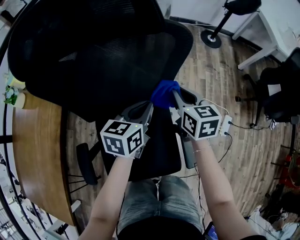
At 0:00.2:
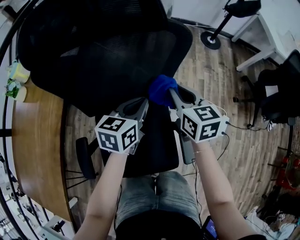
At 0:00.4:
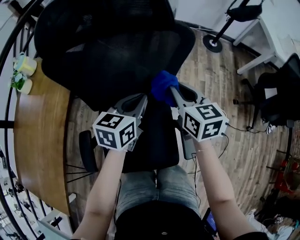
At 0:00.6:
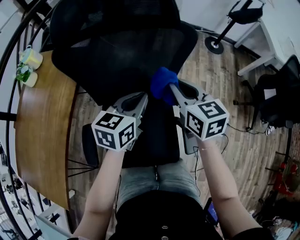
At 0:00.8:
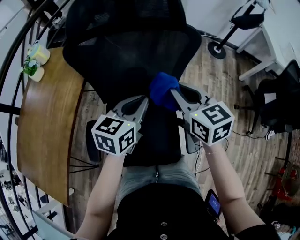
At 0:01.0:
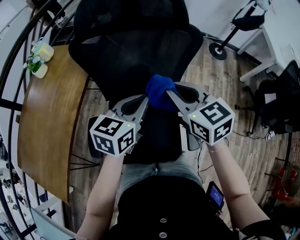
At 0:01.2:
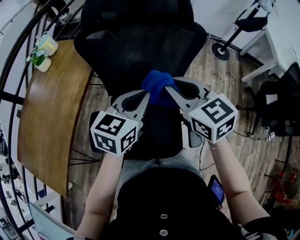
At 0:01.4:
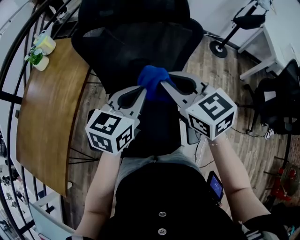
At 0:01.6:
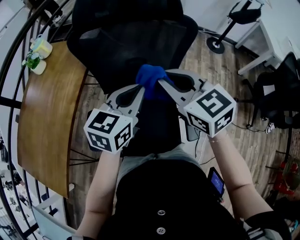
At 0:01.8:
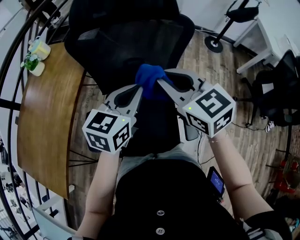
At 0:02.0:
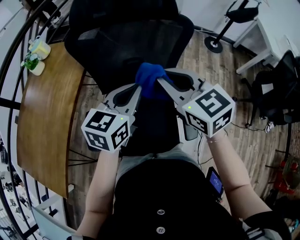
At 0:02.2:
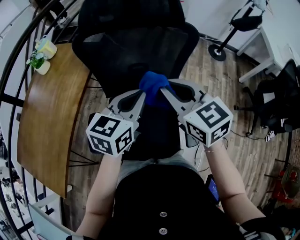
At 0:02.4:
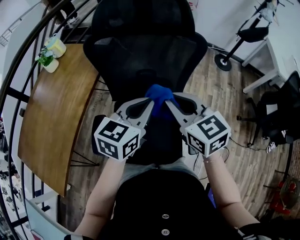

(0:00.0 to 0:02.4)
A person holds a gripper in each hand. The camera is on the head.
0:00.0 - 0:01.2: Both grippers travel together upward, backward and to the left, about 25 cm. The right gripper changes its angle by some 30 degrees.
0:01.2 - 0:02.4: There are only small adjustments of the grippers.

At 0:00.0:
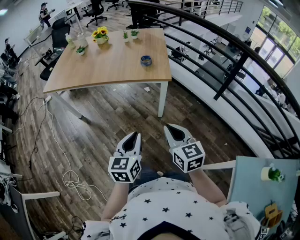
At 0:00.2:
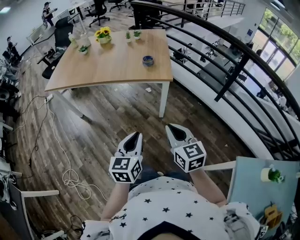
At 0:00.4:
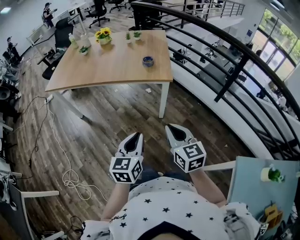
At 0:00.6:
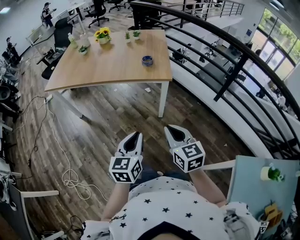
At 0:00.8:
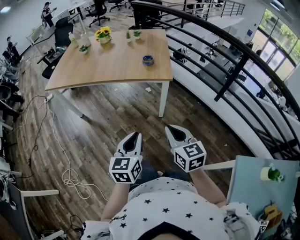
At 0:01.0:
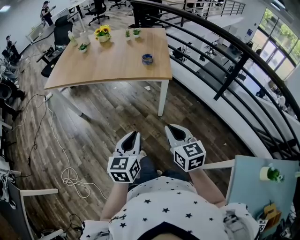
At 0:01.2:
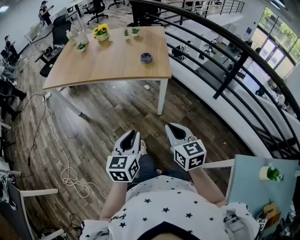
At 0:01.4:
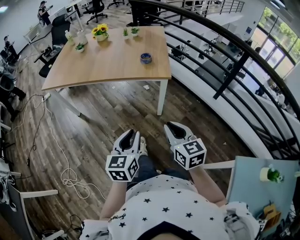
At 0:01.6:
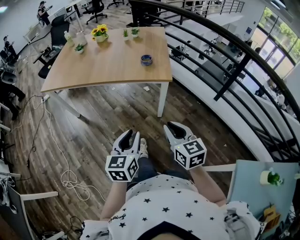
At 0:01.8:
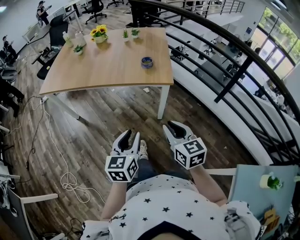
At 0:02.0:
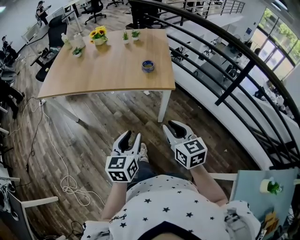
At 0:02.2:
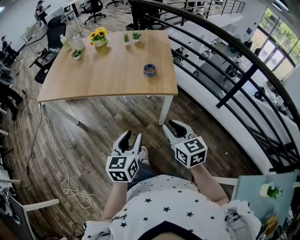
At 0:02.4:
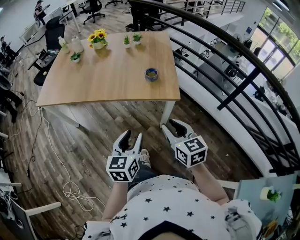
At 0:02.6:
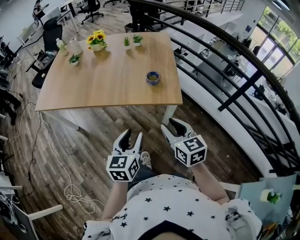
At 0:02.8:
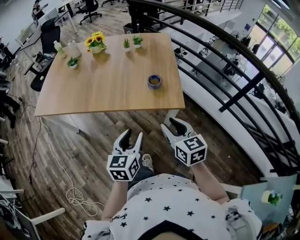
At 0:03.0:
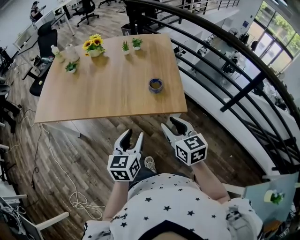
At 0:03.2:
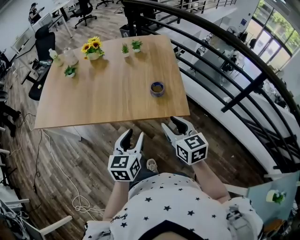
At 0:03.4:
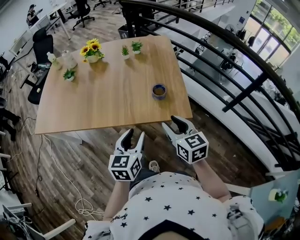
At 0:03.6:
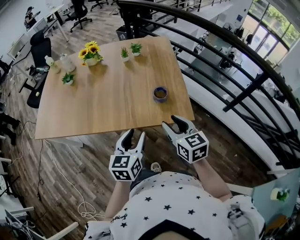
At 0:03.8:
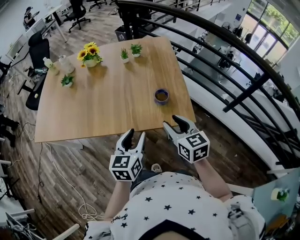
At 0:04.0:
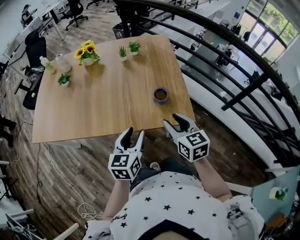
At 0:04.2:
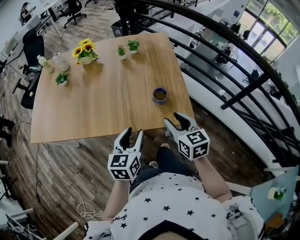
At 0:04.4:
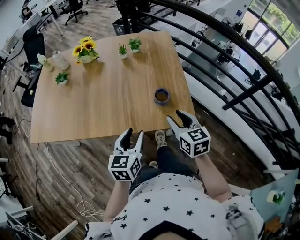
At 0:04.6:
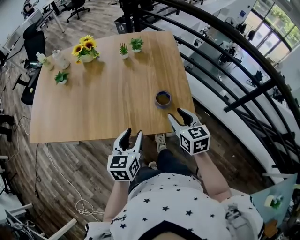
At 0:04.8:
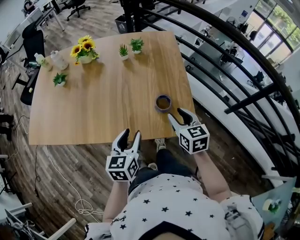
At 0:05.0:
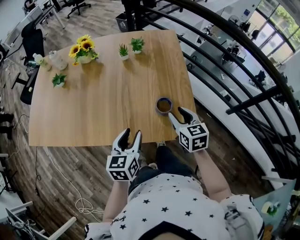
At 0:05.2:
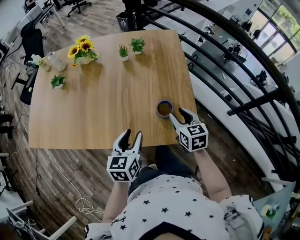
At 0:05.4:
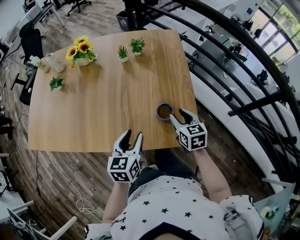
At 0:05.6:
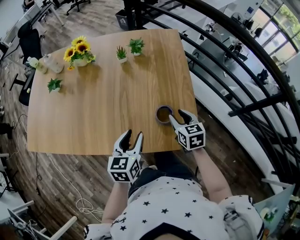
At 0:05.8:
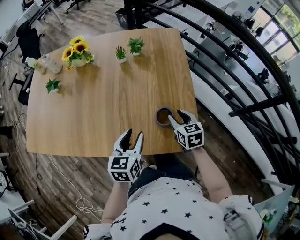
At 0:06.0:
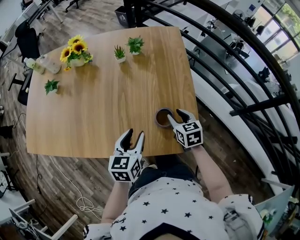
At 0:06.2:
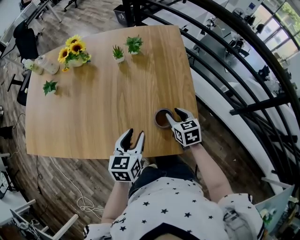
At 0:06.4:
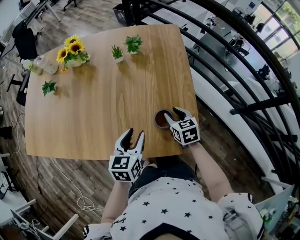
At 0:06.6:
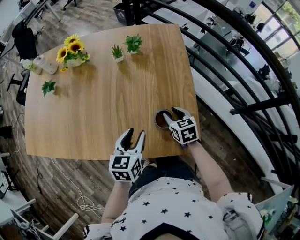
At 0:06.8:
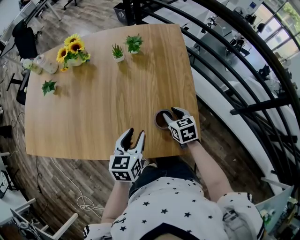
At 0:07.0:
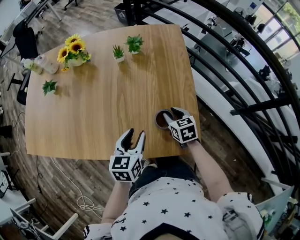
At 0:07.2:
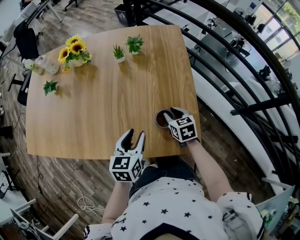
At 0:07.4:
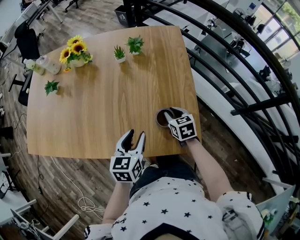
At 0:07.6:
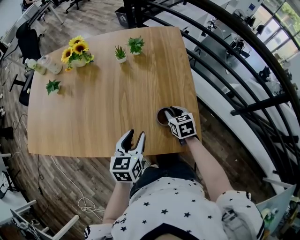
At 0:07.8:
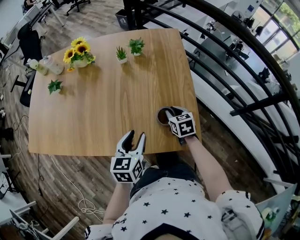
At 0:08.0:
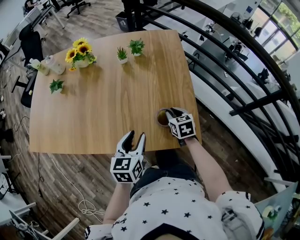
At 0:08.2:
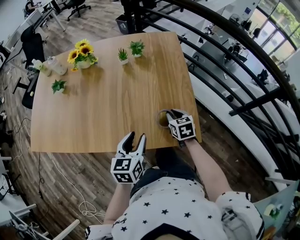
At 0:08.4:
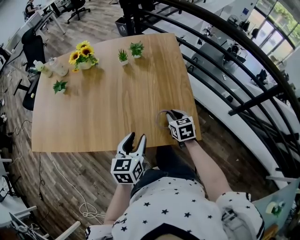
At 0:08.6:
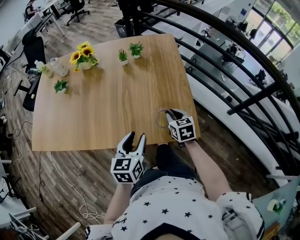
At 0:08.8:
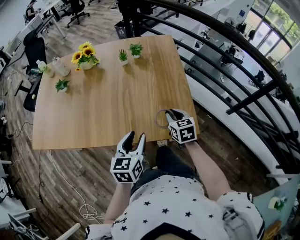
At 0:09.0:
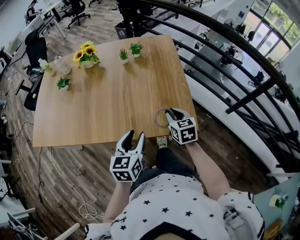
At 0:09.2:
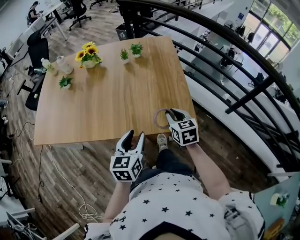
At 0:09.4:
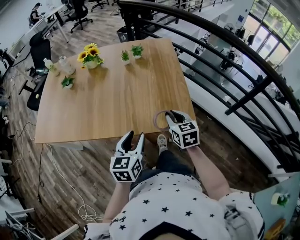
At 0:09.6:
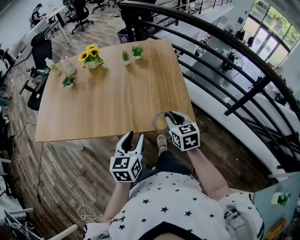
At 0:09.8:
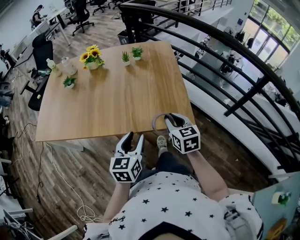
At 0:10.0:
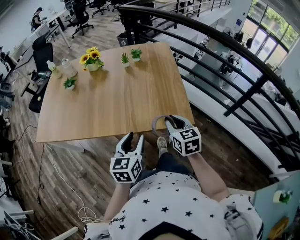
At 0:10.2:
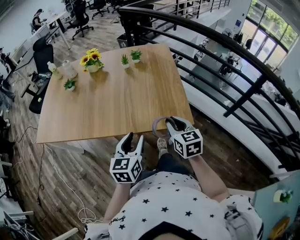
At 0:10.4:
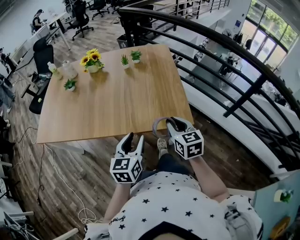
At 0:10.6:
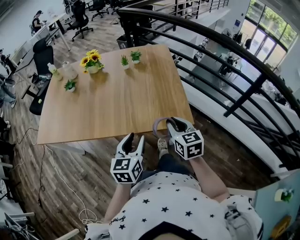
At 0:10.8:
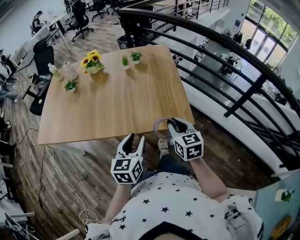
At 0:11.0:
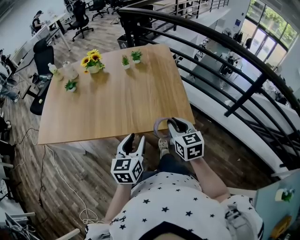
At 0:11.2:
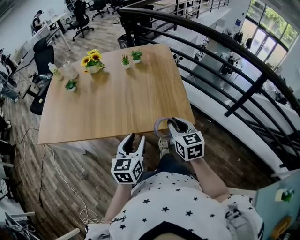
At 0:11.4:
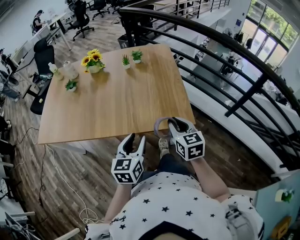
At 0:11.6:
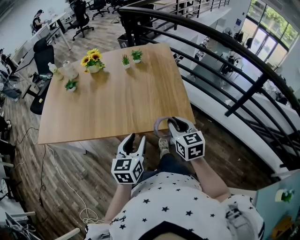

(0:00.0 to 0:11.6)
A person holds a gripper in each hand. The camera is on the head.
0:00.0 - 0:01.4: The grippers make only small movements.
0:01.4 - 0:02.8: The grippers both shift forward by roughly 30 cm. The right gripper opens its fingers. Meanwhile the left gripper opens up.
0:02.8 - 0:04.4: The two grippers go some 20 cm forward.
0:04.4 - 0:05.8: The two grippers go some 20 cm forward and downward.
0:05.8 - 0:07.2: The right gripper ends up some 5 cm from where it was.
0:07.2 - 0:08.8: Both grippers travel together backward and upward, roughly 10 cm.
0:08.8 - 0:10.2: The right gripper is displaced backward and upward by some 15 cm. The left gripper moves backward, some 10 cm.
0:10.2 - 0:11.6: Neither gripper changes place.

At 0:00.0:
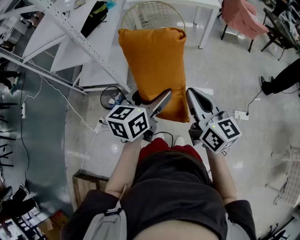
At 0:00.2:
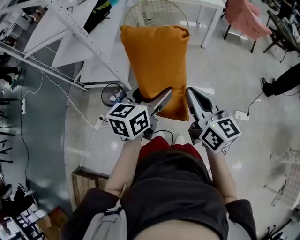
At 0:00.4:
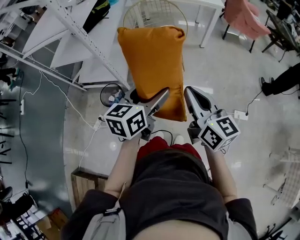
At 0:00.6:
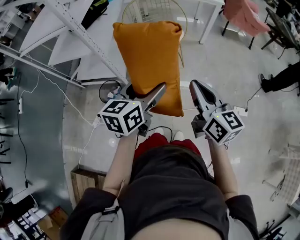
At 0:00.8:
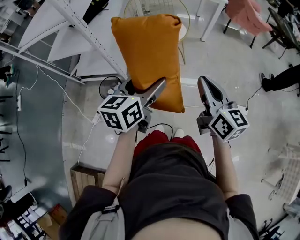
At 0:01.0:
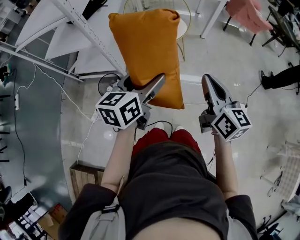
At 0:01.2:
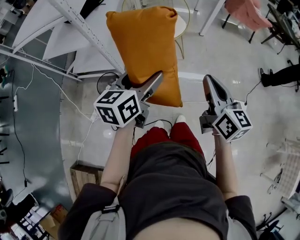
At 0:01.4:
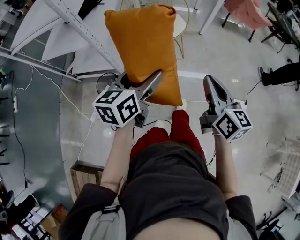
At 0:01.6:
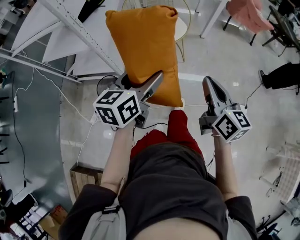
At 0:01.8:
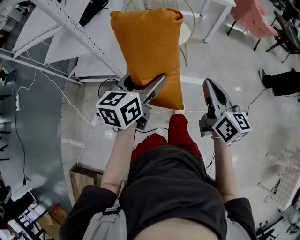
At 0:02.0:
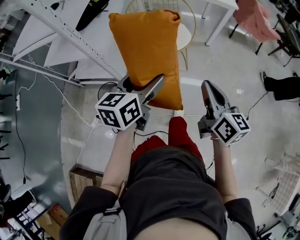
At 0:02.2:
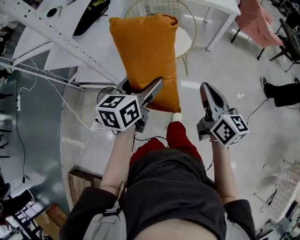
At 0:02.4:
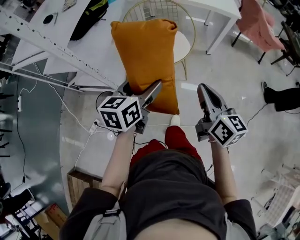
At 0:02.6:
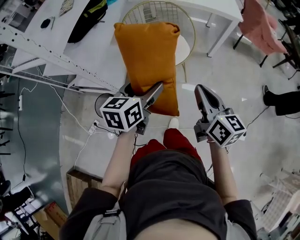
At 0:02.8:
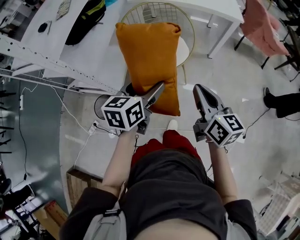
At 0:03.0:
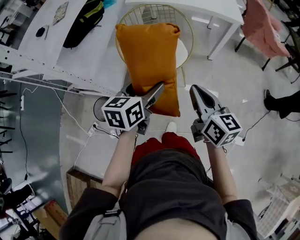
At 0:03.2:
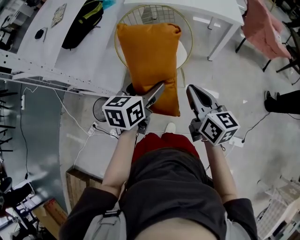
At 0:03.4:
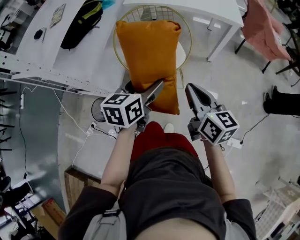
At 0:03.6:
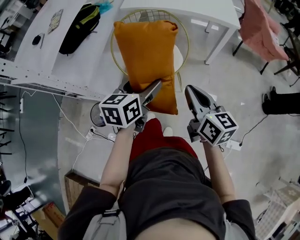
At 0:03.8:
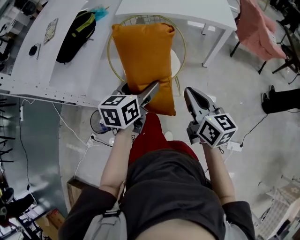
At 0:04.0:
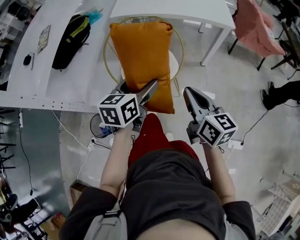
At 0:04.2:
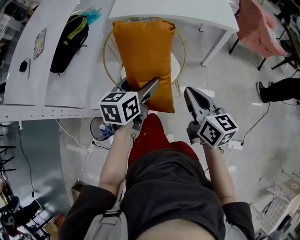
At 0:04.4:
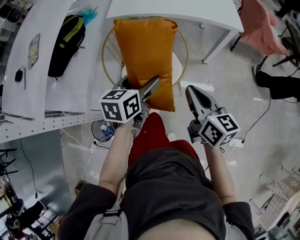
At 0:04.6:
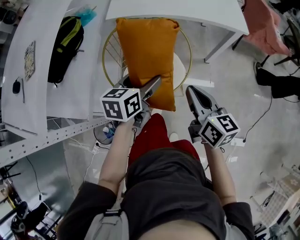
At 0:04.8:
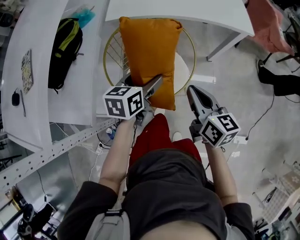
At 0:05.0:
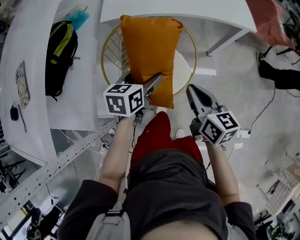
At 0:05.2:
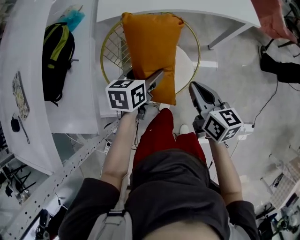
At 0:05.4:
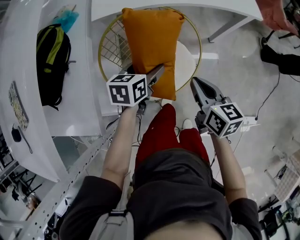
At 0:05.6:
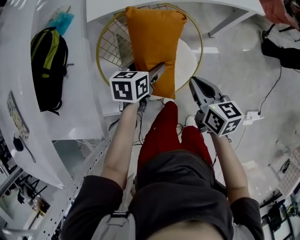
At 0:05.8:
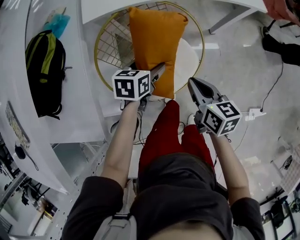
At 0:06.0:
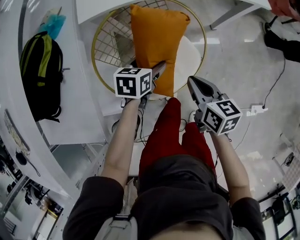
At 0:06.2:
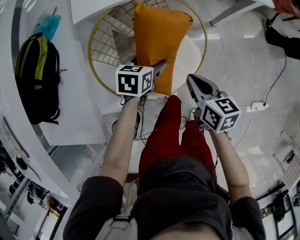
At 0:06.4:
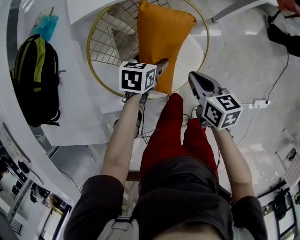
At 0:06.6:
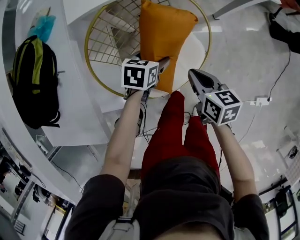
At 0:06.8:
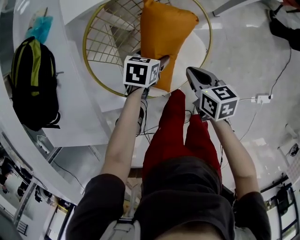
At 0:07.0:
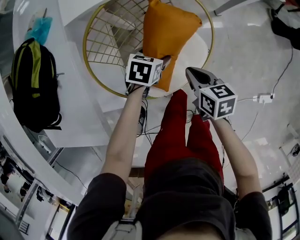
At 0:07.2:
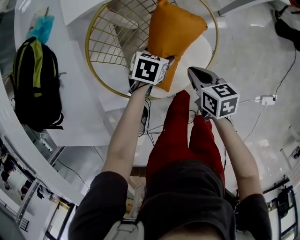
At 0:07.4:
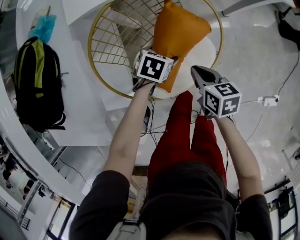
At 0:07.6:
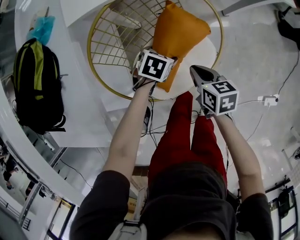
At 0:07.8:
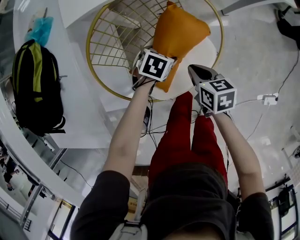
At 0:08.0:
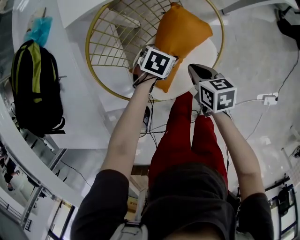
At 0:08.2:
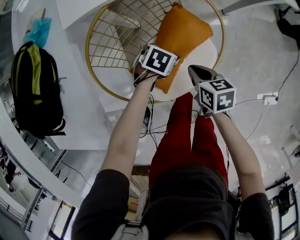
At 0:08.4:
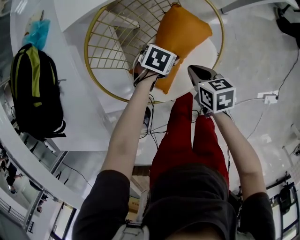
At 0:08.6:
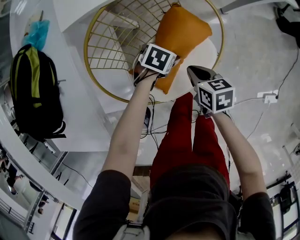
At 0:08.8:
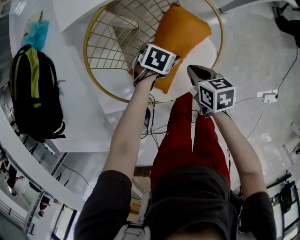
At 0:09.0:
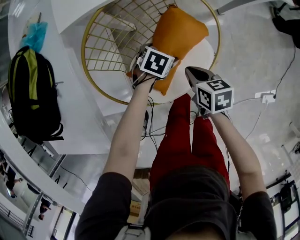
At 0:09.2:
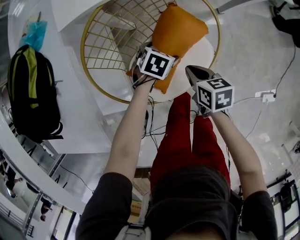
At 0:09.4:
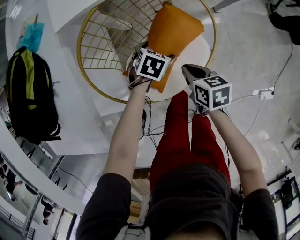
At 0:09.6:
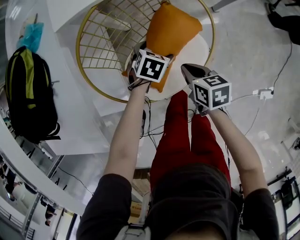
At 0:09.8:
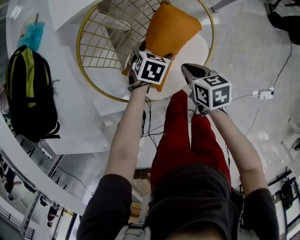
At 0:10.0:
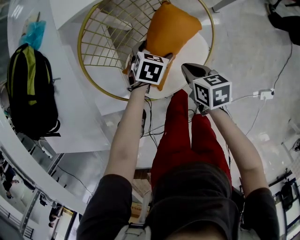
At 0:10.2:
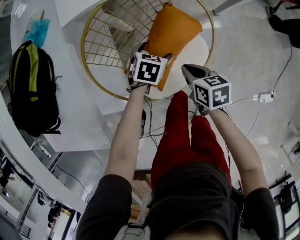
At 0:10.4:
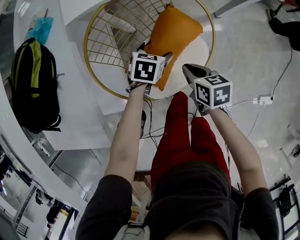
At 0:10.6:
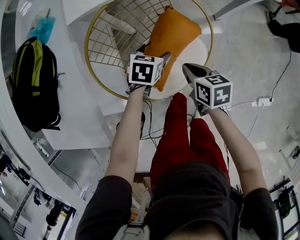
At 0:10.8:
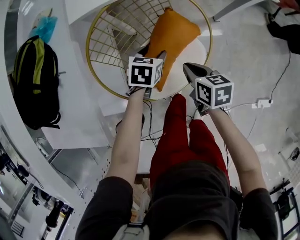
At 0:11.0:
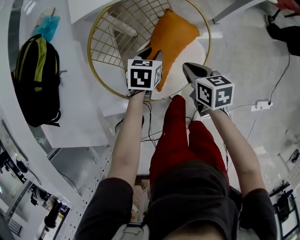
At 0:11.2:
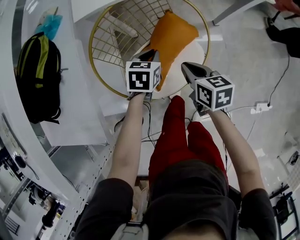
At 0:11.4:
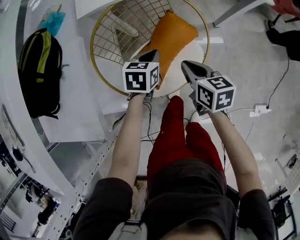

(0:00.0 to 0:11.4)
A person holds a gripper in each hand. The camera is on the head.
0:00.0 - 0:01.4: The left gripper goes some 10 cm to the left. The right gripper ends up about 5 cm from where it was.
0:01.4 - 0:02.8: The right gripper heads forward, covering some 25 cm. Meanwhile the left gripper heads forward and to the right, covering approximately 25 cm.
0:02.8 - 0:04.2: The grippers both shift forward by roughly 15 cm.
0:04.2 - 0:05.6: The left gripper travels forward and downward by roughly 25 cm, and changes its angle by some 20 degrees. The right gripper heads forward, downward and to the left, covering roughly 20 cm.
0:05.6 - 0:07.2: The two grippers go some 15 cm downward. The left gripper changes its angle by some 30 degrees.
0:07.2 - 0:08.6: The right gripper shifts by some 5 cm. The left gripper travels downward by about 5 cm.
0:08.6 - 0:10.0: The grippers make only small movements.
0:10.0 - 0:11.4: The two grippers go approximately 10 cm upward. The left gripper swivels some 20 degrees, and closes up.
